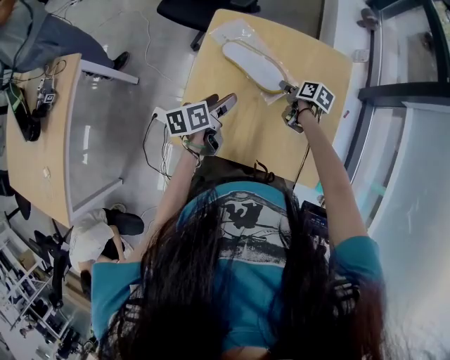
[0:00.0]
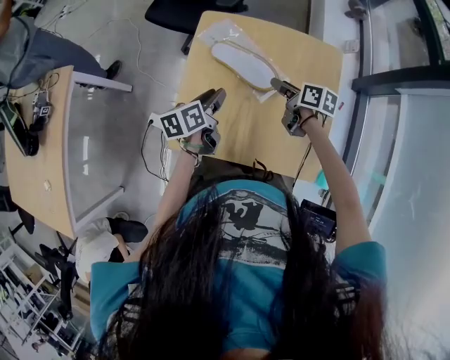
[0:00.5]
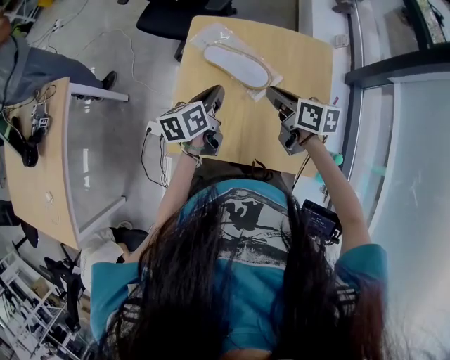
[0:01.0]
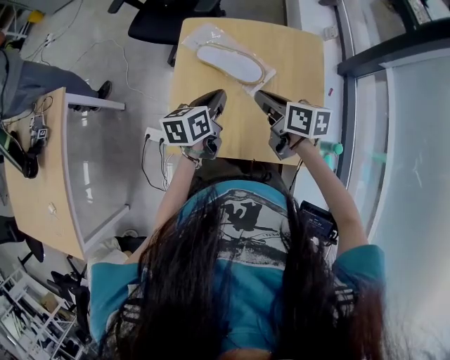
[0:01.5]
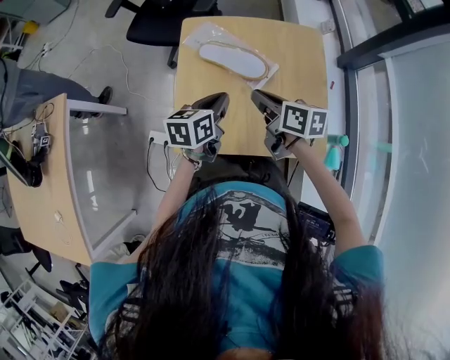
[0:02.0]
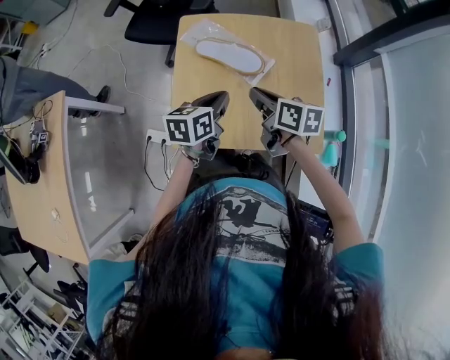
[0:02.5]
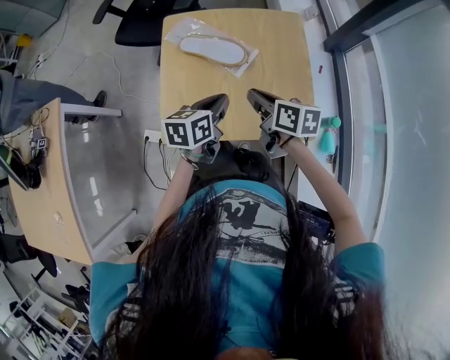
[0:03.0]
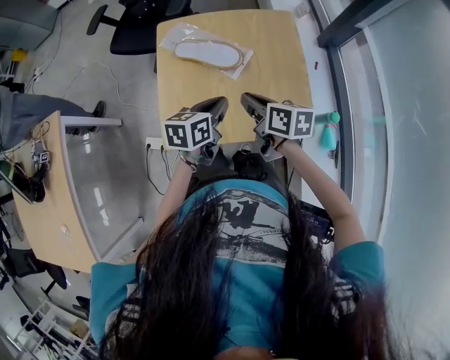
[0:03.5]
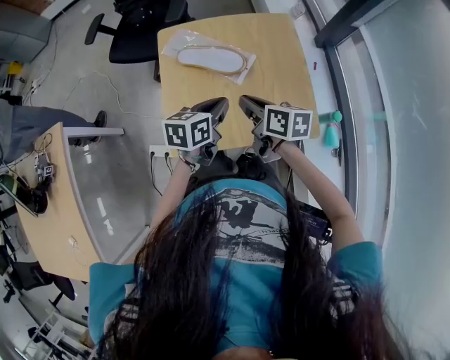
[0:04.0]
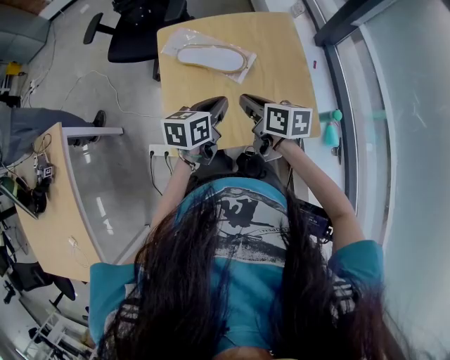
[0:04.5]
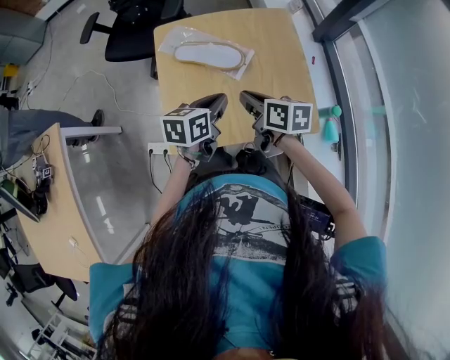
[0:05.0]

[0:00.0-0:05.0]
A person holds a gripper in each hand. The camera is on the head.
0:00.0 to 0:02.5: The left gripper moves upward and backward, approximately 10 cm, turns by about 30 degrees, and closes up. Meanwhile the right gripper moves upward, backward and to the left, roughly 25 cm, turns by approximately 30 degrees, and closes its fingers.
0:02.5 to 0:05.0: The left gripper shifts by about 5 cm.

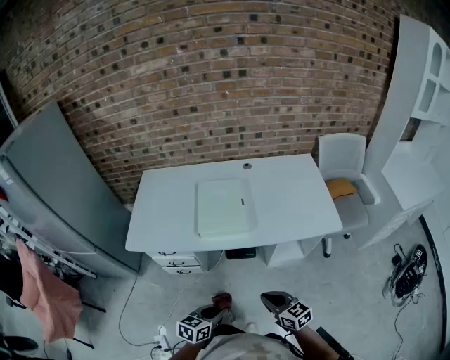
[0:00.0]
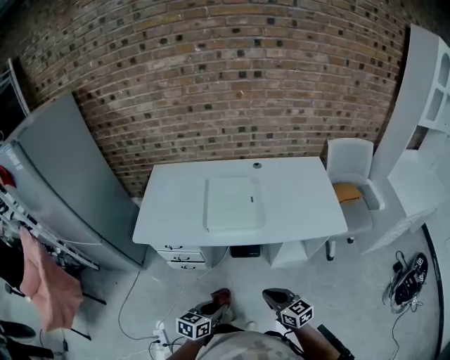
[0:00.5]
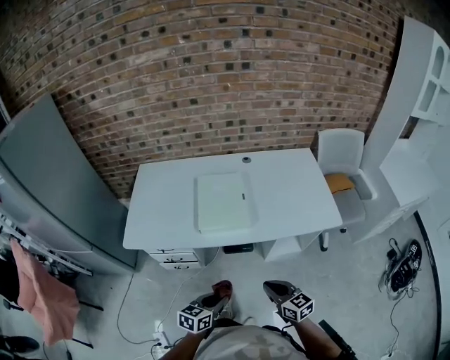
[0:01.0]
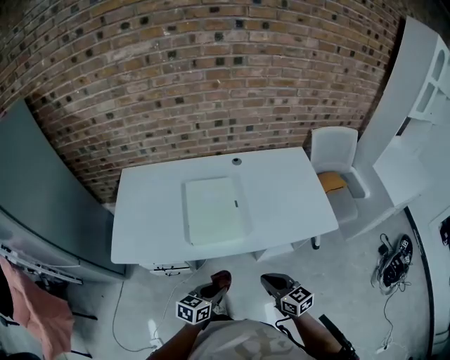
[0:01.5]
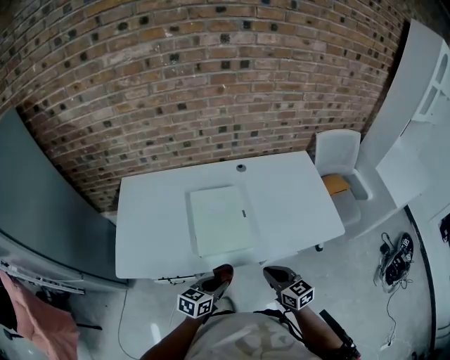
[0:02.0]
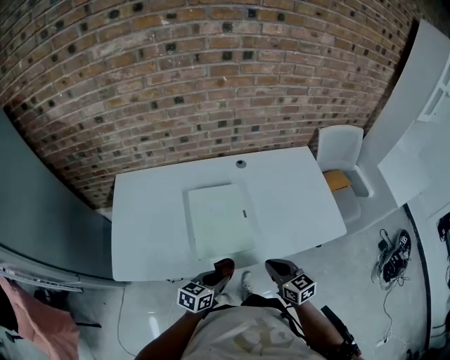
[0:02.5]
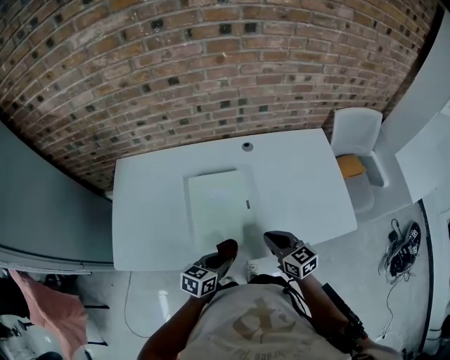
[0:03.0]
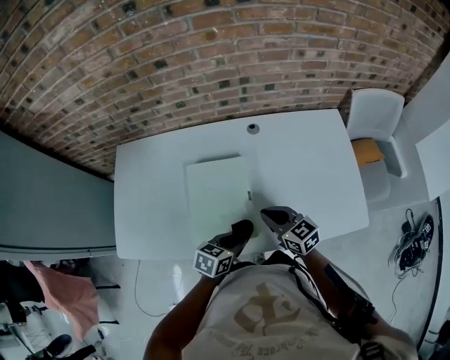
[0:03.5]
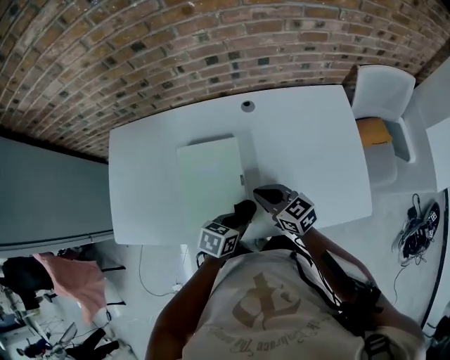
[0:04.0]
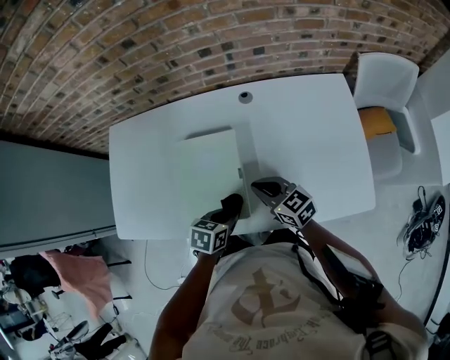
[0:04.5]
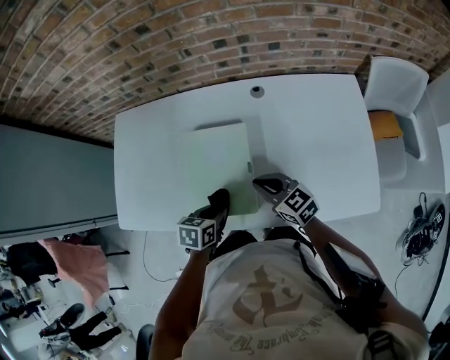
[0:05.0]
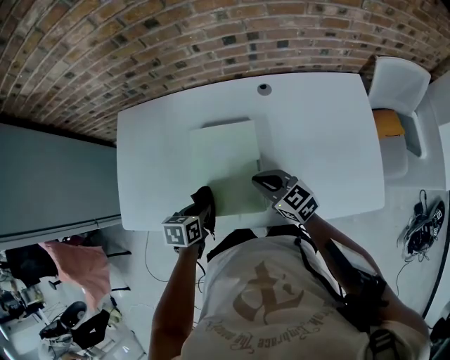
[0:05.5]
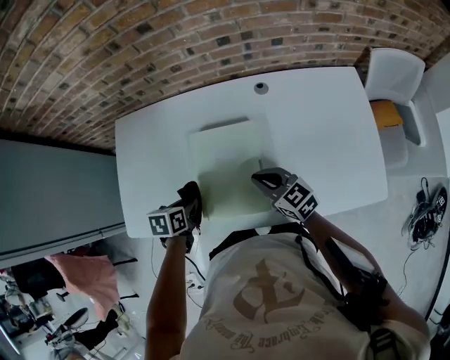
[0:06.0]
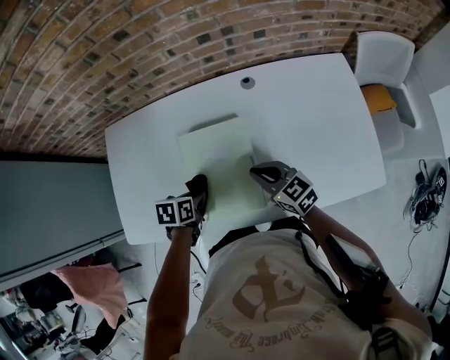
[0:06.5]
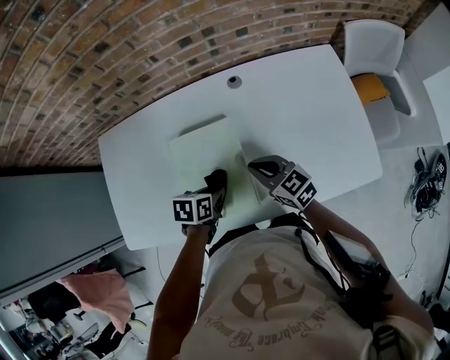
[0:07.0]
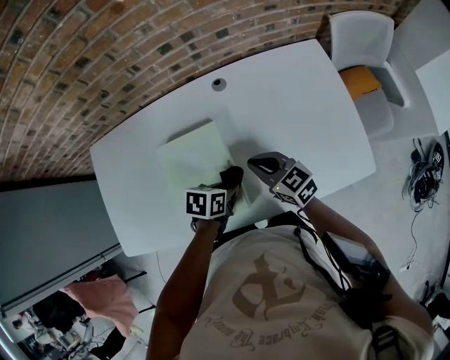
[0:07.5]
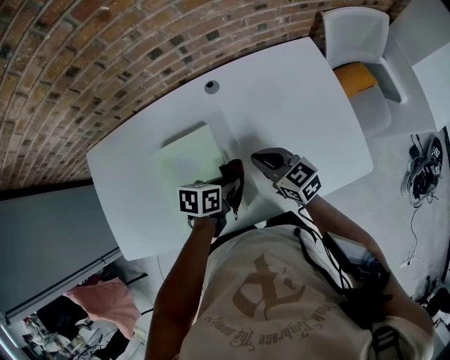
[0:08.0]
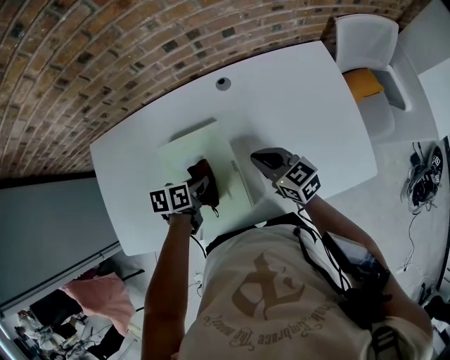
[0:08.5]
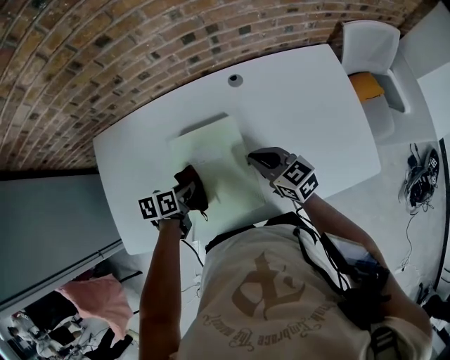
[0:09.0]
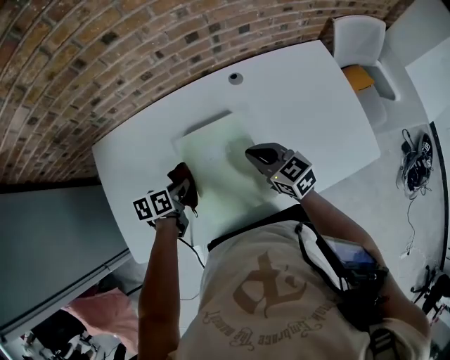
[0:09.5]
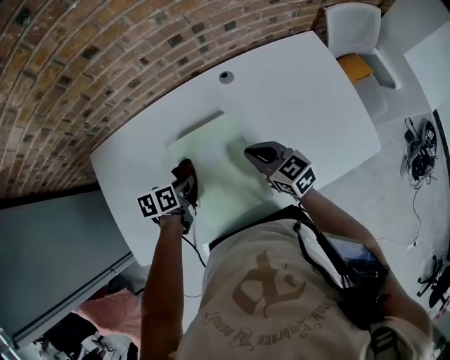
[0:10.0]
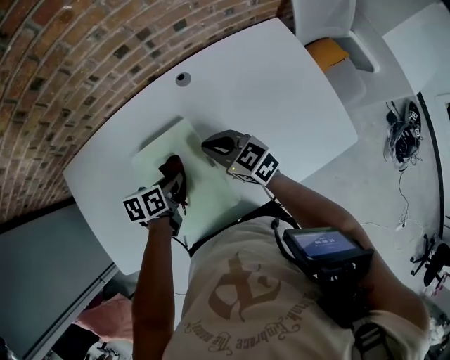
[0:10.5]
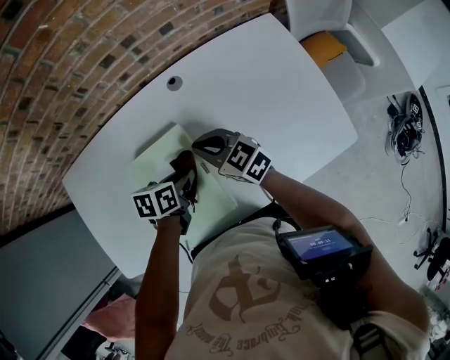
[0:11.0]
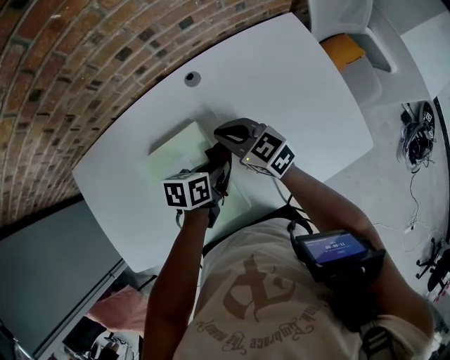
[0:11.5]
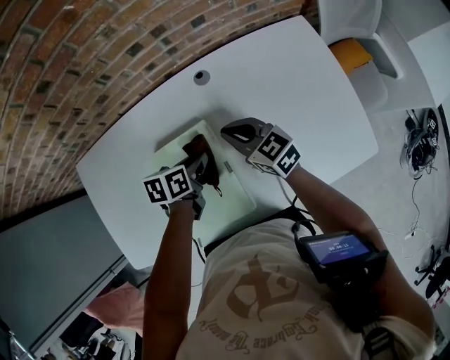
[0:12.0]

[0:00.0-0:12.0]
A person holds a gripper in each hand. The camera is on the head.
0:00.0 to 0:02.0: The grippers both shift forward by about 20 cm.
0:02.0 to 0:04.0: The left gripper goes about 20 cm forward and to the right, and swivels about 20 degrees. Meanwhile the right gripper is displaced forward by roughly 25 cm, and turns by approximately 20 degrees.
0:04.0 to 0:06.0: The right gripper moves to the left, about 5 cm, while the left gripper shifts roughly 25 cm to the left, and changes its angle by about 30 degrees.
0:06.0 to 0:08.0: The right gripper shifts by some 15 cm; the left gripper shifts by approximately 25 cm, and swivels roughly 30 degrees.
0:08.0 to 0:10.0: The right gripper is displaced to the left by some 10 cm. Meanwhile the left gripper travels to the left by roughly 25 cm.
0:10.0 to 0:12.0: The left gripper shifts approximately 15 cm to the right and forward. Meanwhile the right gripper shifts about 10 cm forward.

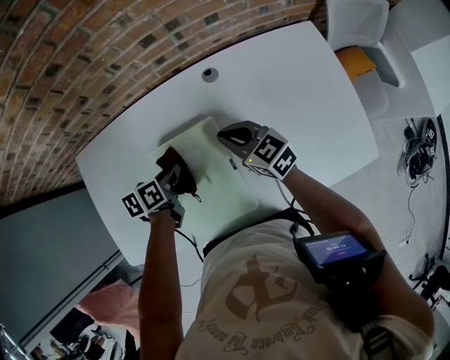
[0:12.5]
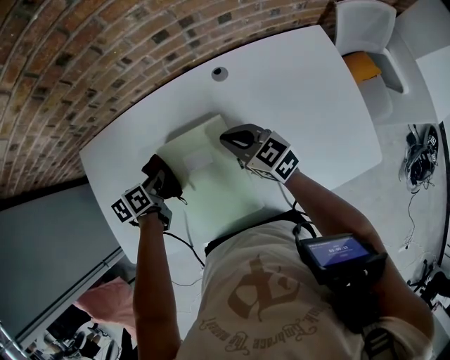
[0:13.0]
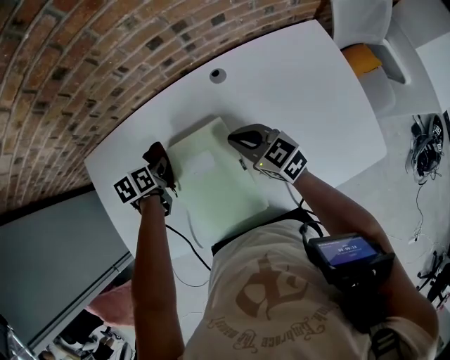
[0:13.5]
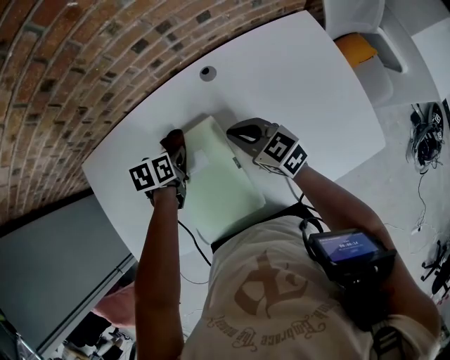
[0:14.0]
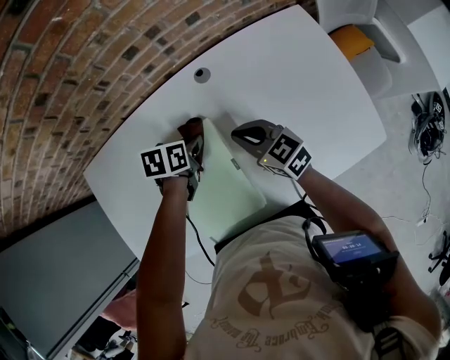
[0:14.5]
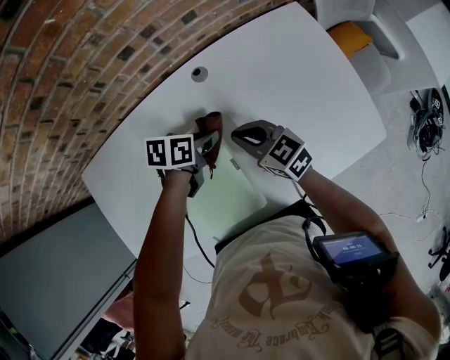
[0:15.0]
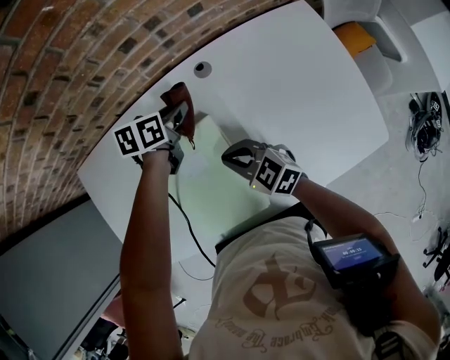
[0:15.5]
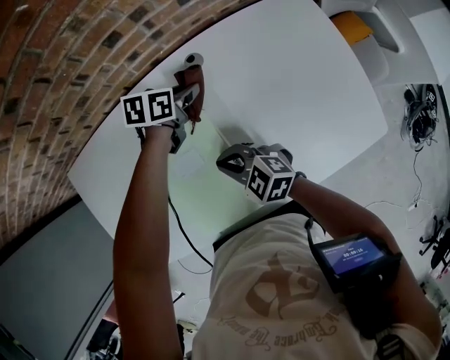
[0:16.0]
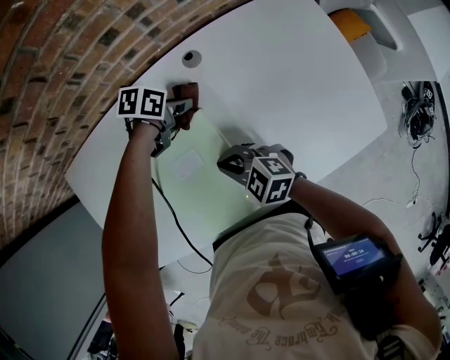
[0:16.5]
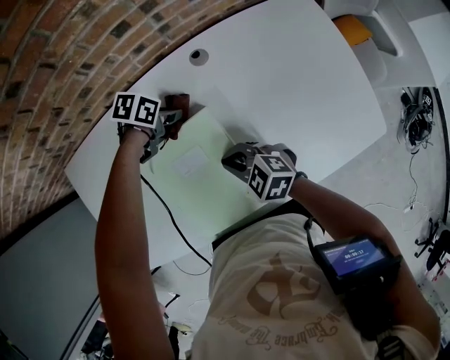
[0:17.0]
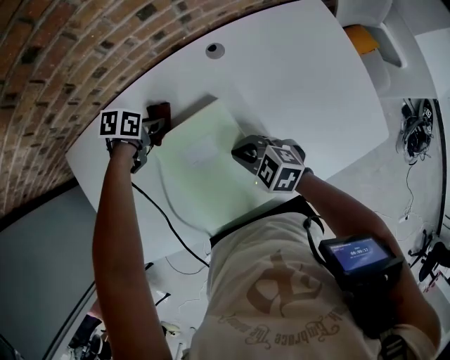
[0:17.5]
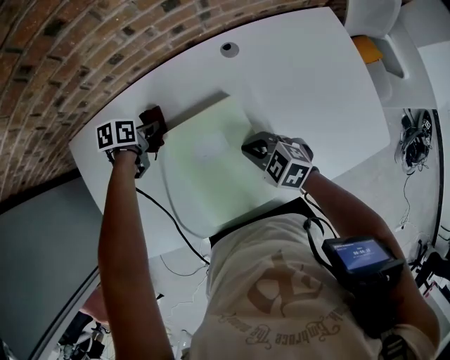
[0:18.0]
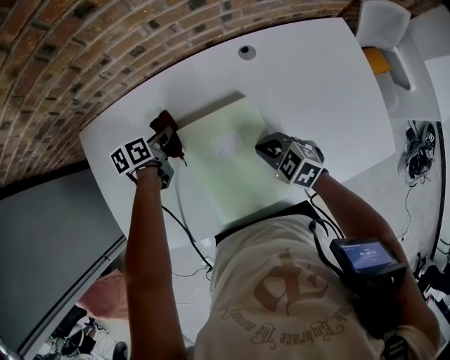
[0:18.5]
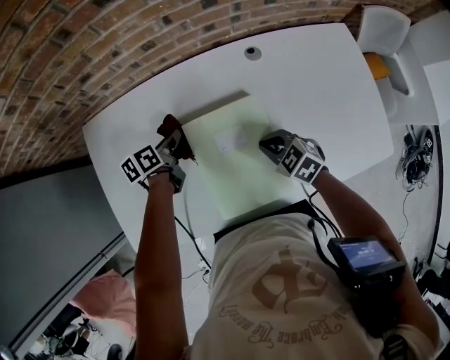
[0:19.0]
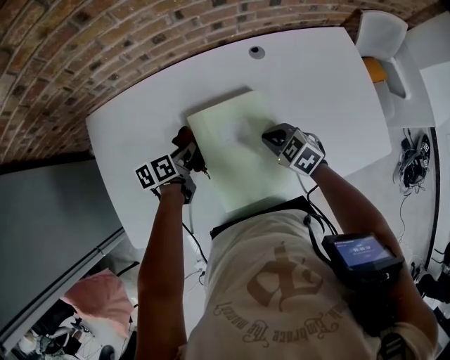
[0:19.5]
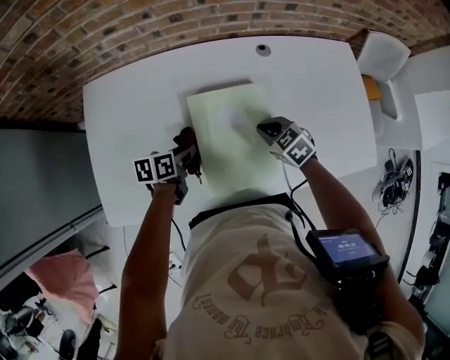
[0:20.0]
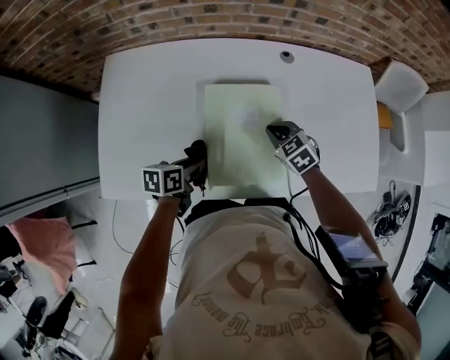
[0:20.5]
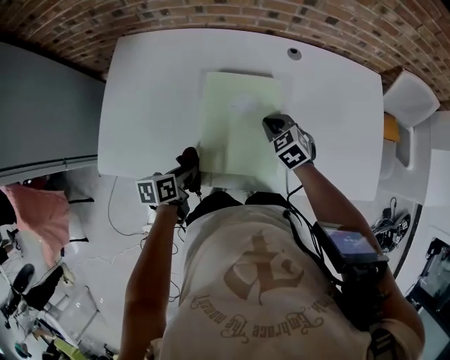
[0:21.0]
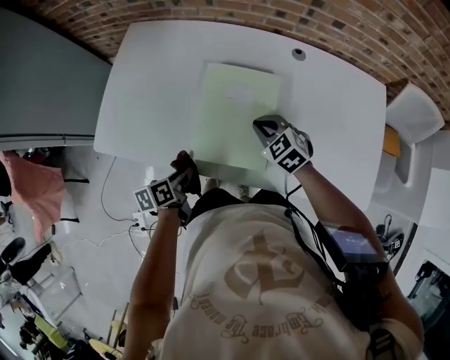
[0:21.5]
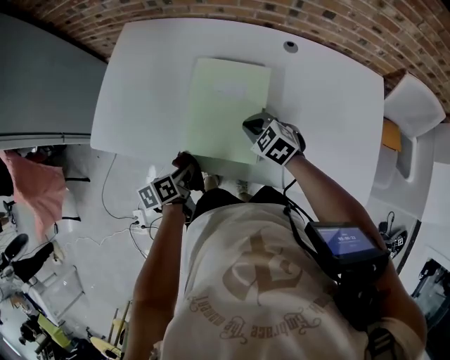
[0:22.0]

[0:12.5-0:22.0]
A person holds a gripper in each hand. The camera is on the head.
0:12.5 to 0:14.5: The left gripper shifts approximately 10 cm to the right and forward, and rotates roughly 20 degrees.
0:14.5 to 0:16.5: The right gripper changes place by approximately 10 cm, and changes its angle by about 30 degrees; the left gripper shifts by roughly 10 cm, and rotates approximately 20 degrees.
0:16.5 to 0:18.0: The left gripper shifts by some 25 cm, and turns by about 20 degrees.
0:18.0 to 0:20.0: The left gripper ends up approximately 20 cm from where it was, and rotates about 20 degrees.
0:20.0 to 0:22.0: The left gripper changes place by about 20 cm, and rotates some 40 degrees, while the right gripper moves some 5 cm, and rotates some 30 degrees.
